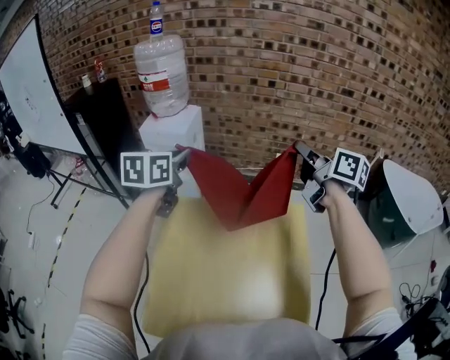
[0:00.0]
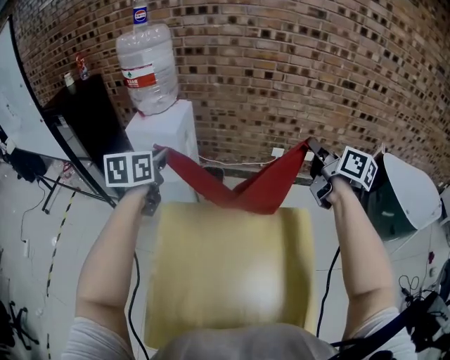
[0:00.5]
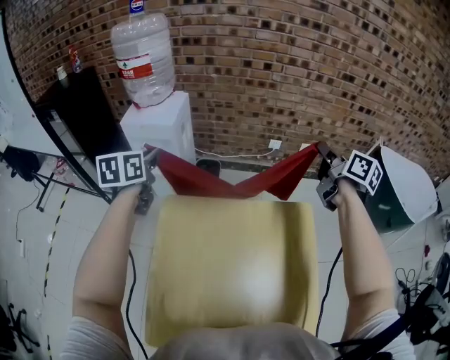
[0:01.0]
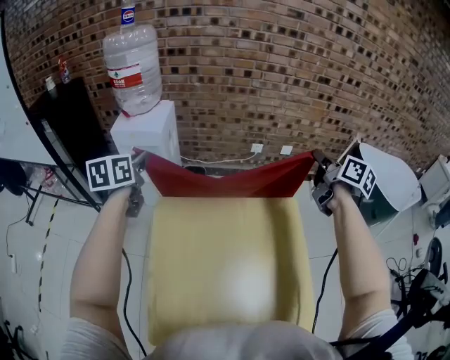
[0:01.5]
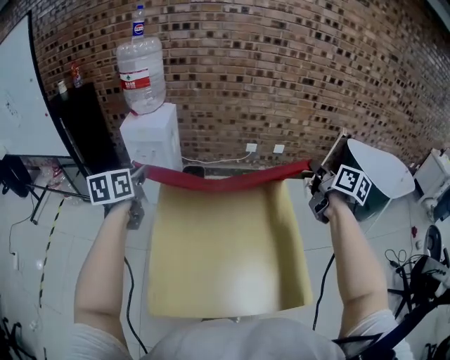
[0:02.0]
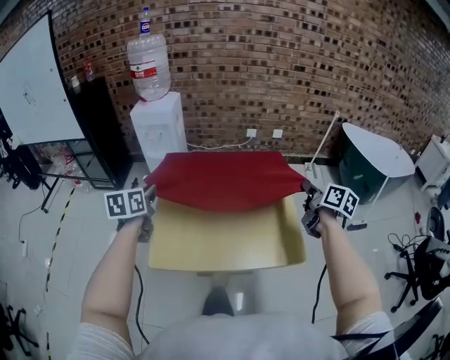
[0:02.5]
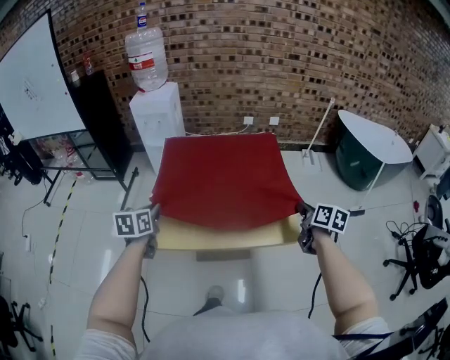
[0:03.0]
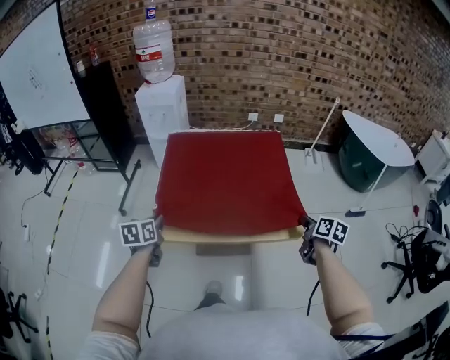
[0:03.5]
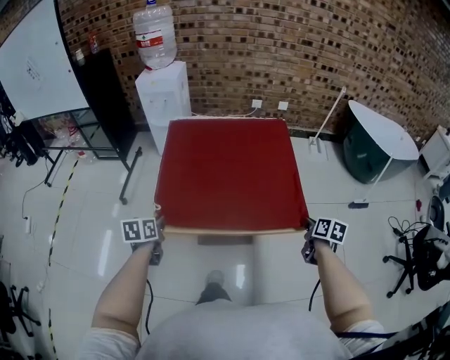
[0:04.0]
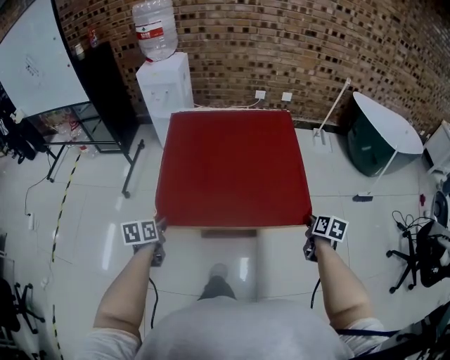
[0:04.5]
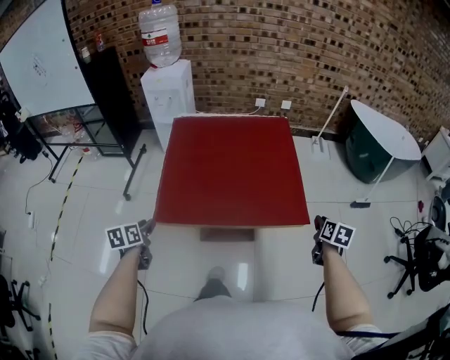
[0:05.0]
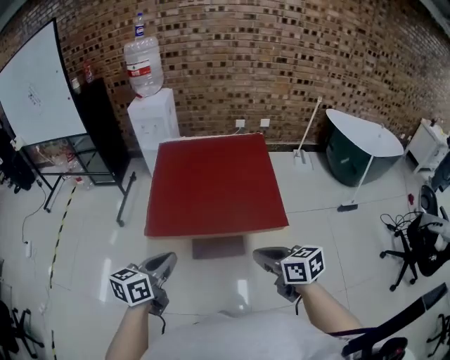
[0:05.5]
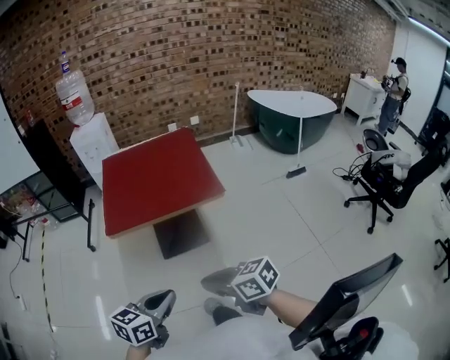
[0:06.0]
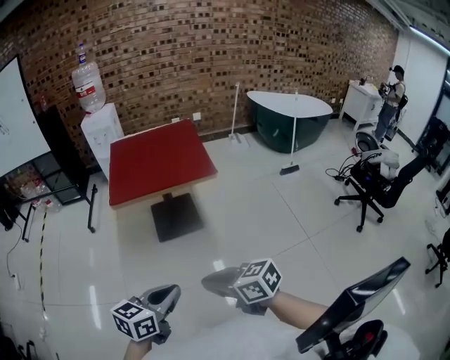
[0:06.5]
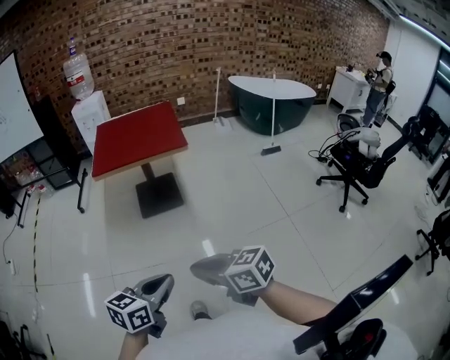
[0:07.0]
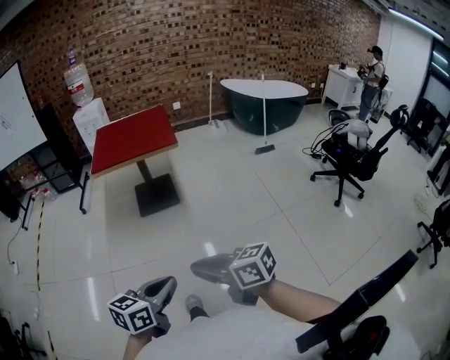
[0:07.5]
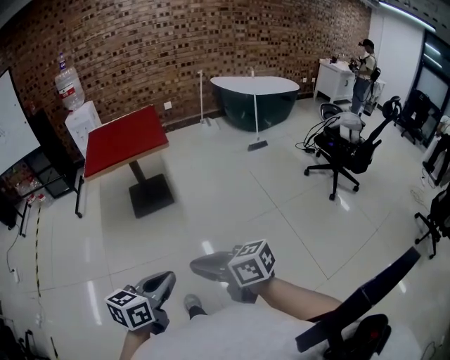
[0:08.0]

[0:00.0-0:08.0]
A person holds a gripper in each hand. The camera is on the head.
0:00.0 to 0:02.0: The right gripper moves backward and to the right, approximately 20 cm, and swivels roughly 30 degrees, while the left gripper heads to the left, backward and downward, covering some 20 cm.
0:02.0 to 0:04.0: Both grippers travel together backward and downward, about 50 cm. The left gripper changes its angle by roughly 20 degrees. The right gripper tilts its fingers about 30 degrees downward.
0:04.0 to 0:06.0: The right gripper shifts approximately 50 cm backward and to the left, rotates approximately 50 degrees, and opens, then closes again; the left gripper shifts some 50 cm backward and to the right, rotates roughly 40 degrees, and opens, then closes once more.
0:06.0 to 0:08.0: The pair of grippers is taken backward, about 40 cm.

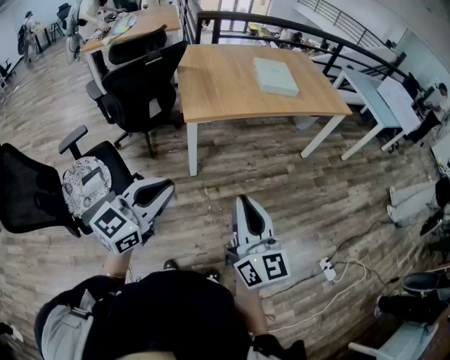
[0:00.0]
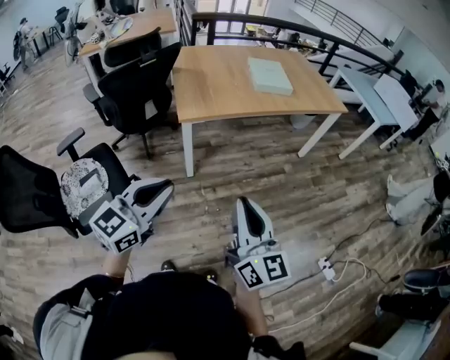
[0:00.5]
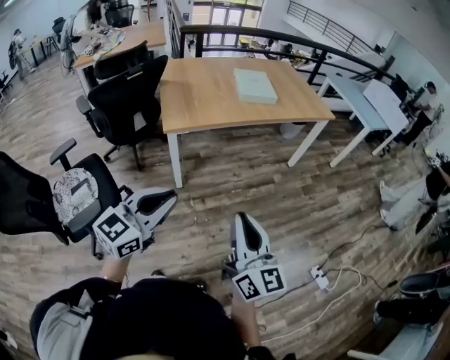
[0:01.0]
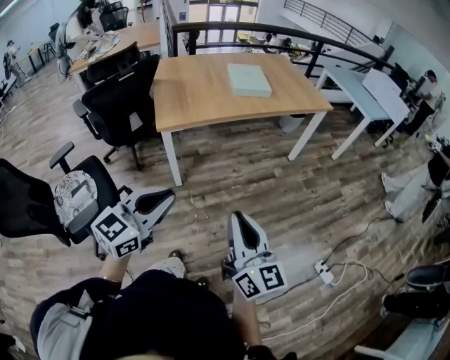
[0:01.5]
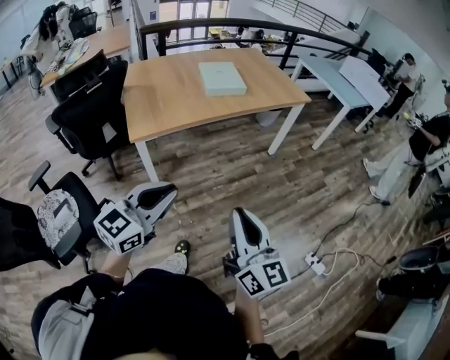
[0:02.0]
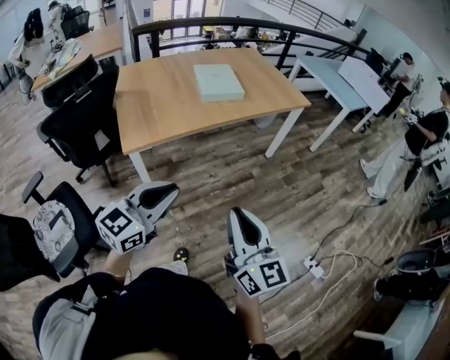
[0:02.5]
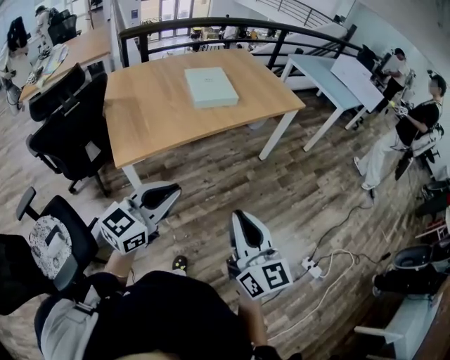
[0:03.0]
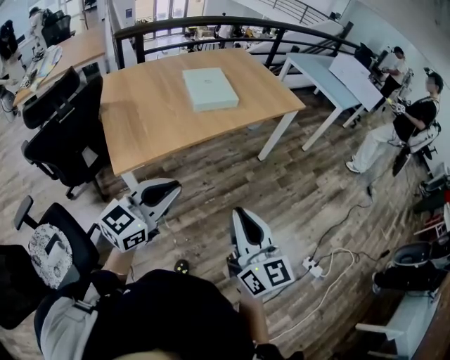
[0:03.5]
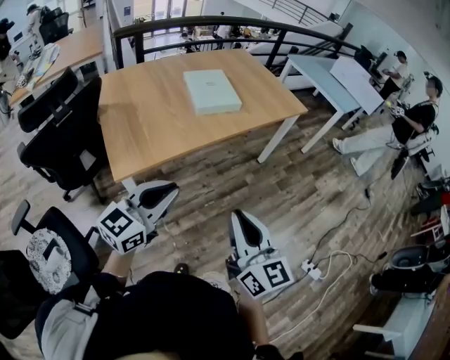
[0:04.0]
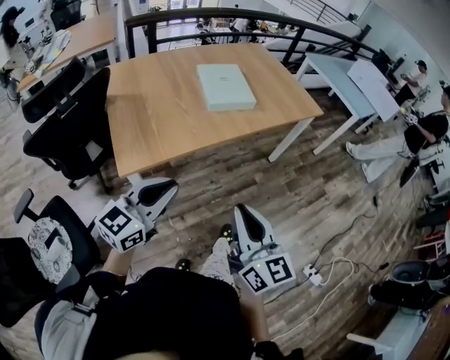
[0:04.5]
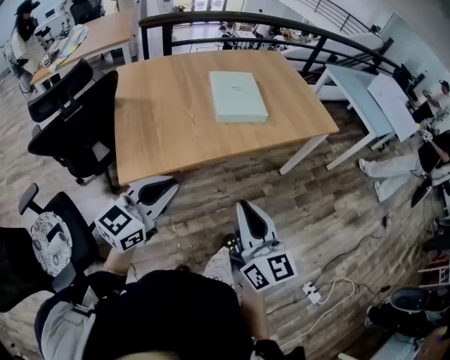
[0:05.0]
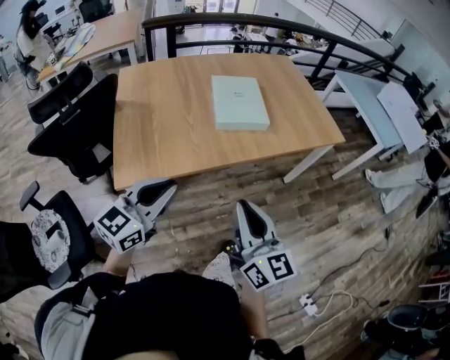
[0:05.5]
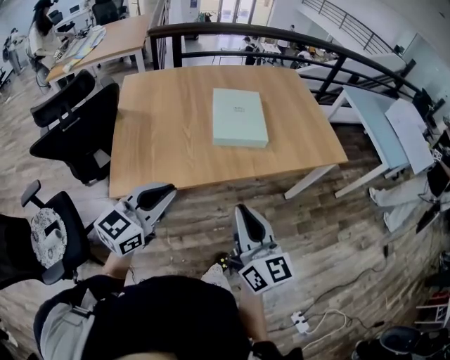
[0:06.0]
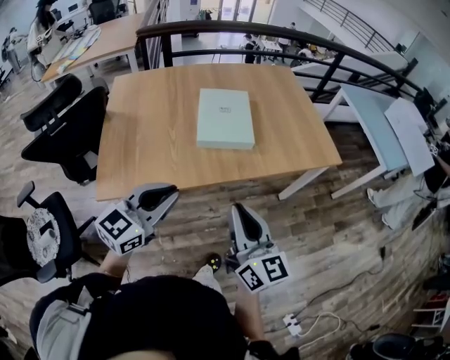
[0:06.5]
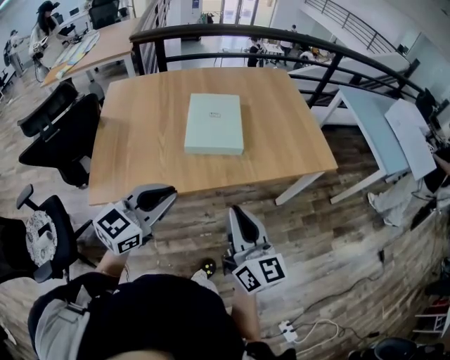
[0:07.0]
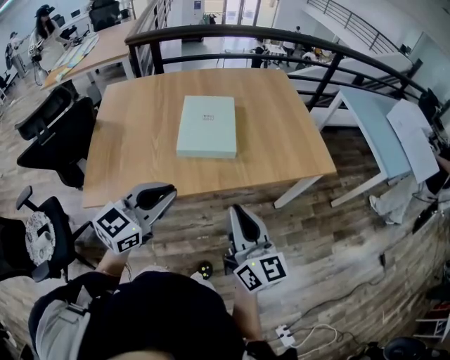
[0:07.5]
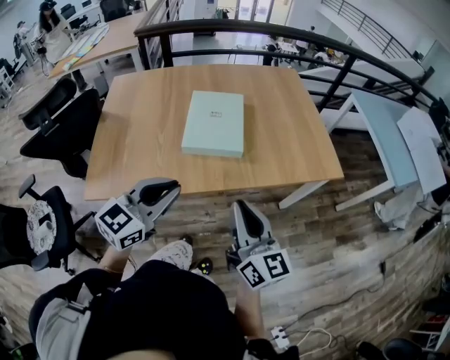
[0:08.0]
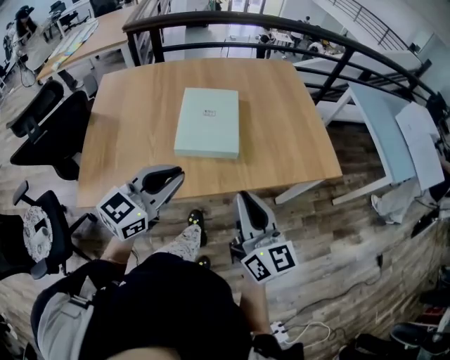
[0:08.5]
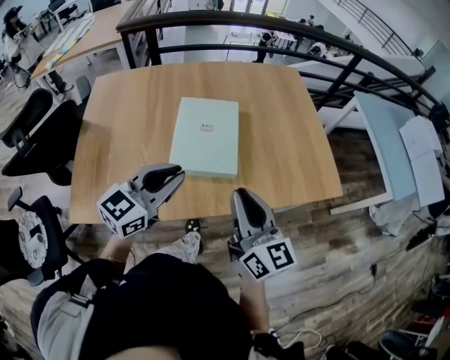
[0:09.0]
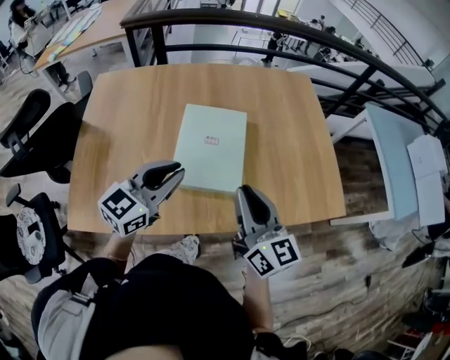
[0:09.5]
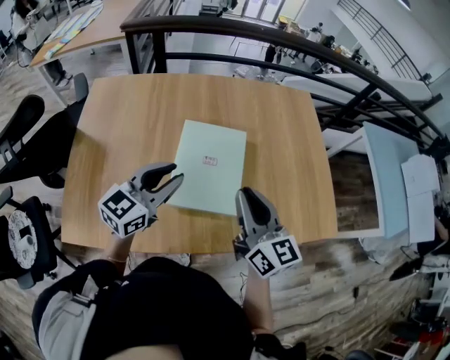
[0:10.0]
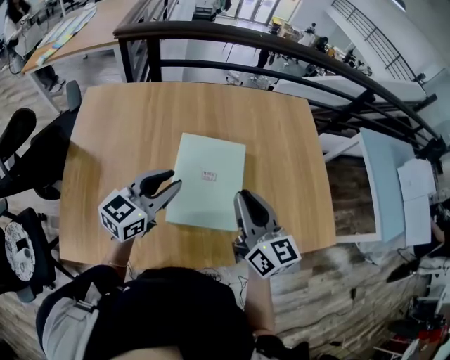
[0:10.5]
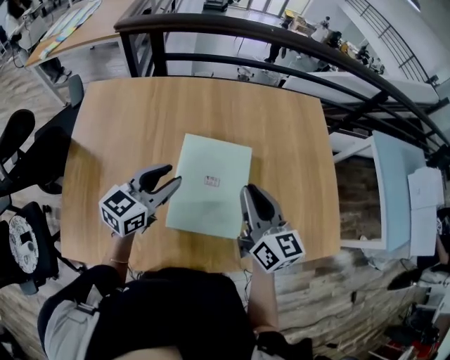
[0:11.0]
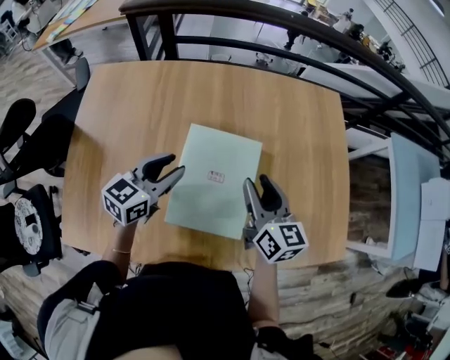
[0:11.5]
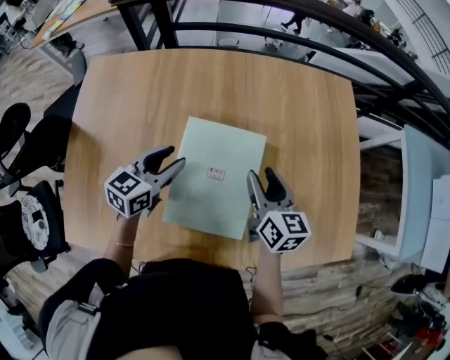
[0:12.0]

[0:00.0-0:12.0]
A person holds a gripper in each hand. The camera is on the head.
0:00.0 to 0:02.0: The right gripper heads to the right, covering about 15 cm, while the left gripper goes roughly 20 cm to the right and forward.
0:02.0 to 0:04.0: The two grippers go some 20 cm forward and to the left.
0:04.0 to 0:06.0: The grippers both shift forward by about 20 cm.
0:06.0 to 0:08.0: Both grippers travel together to the right and forward, some 20 cm.
0:08.0 to 0:10.0: Both grippers move forward, about 30 cm.
0:10.0 to 0:12.0: The two grippers go about 20 cm forward and downward. The right gripper rotates about 20 degrees, and opens its fingers.

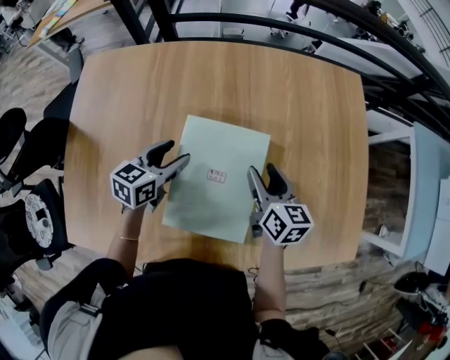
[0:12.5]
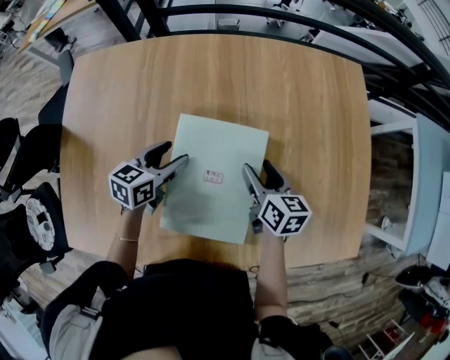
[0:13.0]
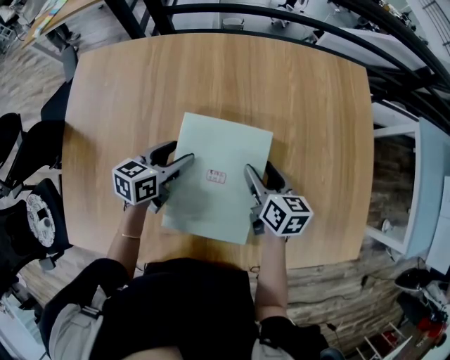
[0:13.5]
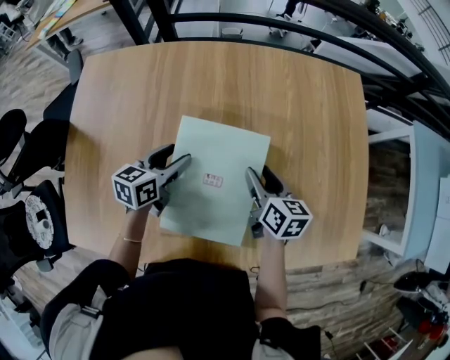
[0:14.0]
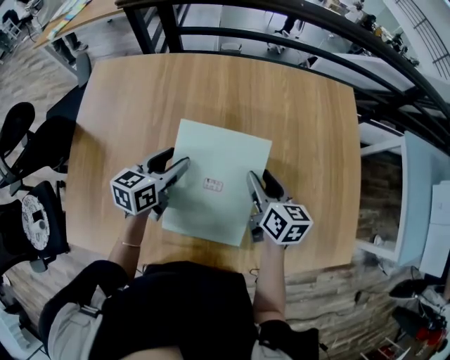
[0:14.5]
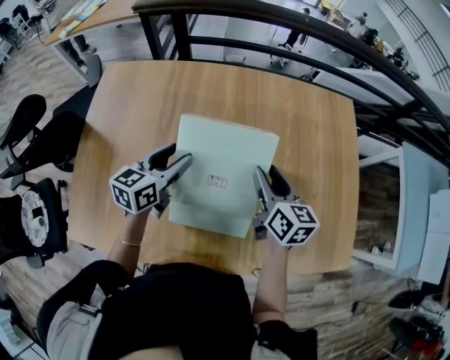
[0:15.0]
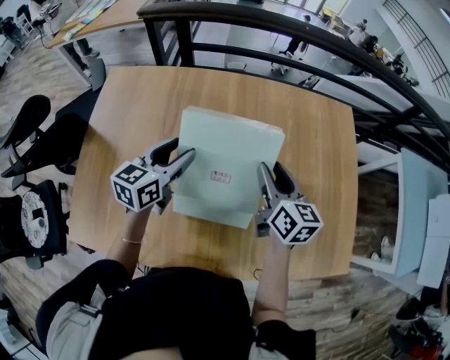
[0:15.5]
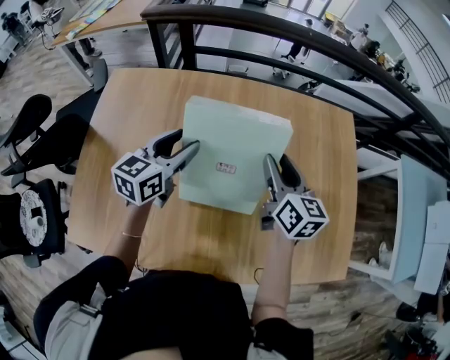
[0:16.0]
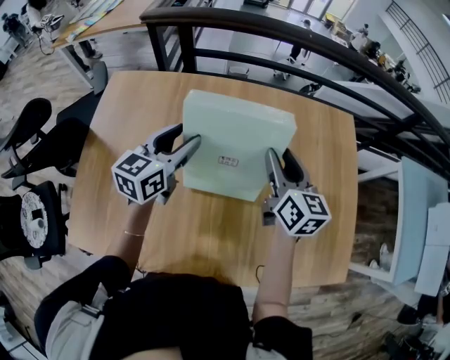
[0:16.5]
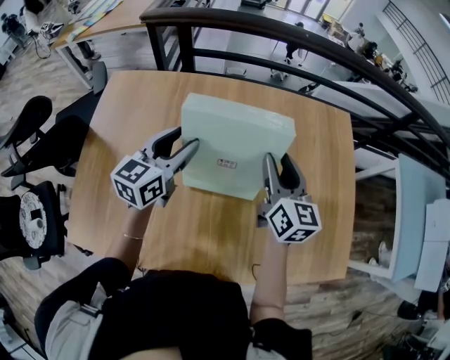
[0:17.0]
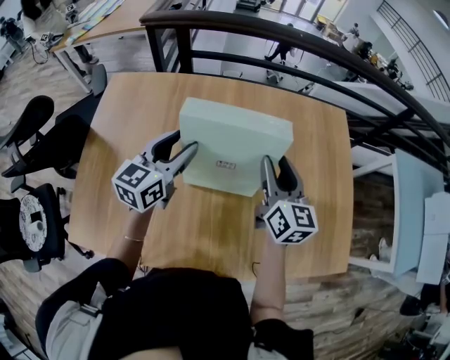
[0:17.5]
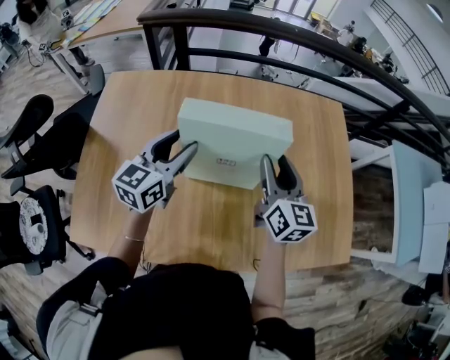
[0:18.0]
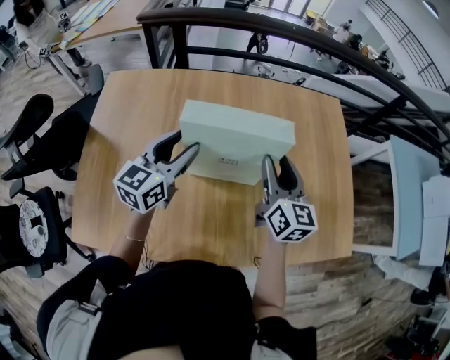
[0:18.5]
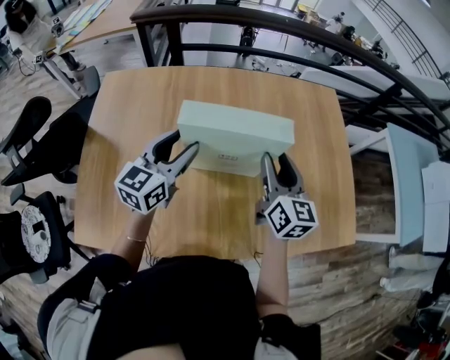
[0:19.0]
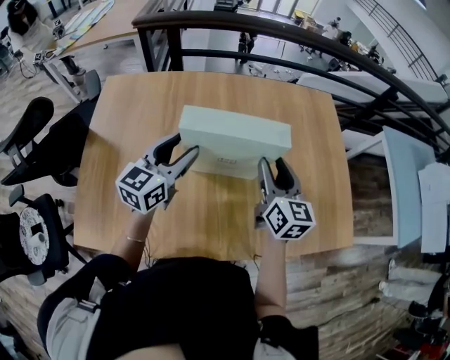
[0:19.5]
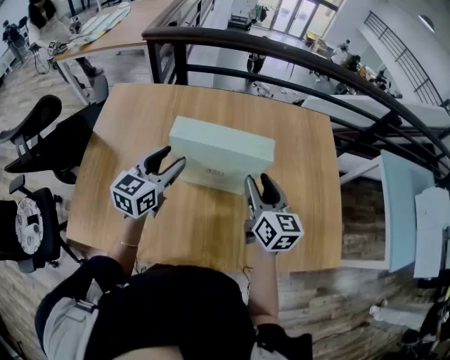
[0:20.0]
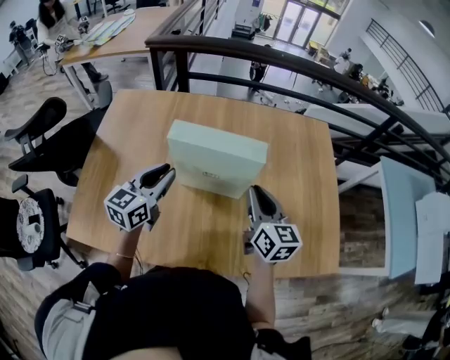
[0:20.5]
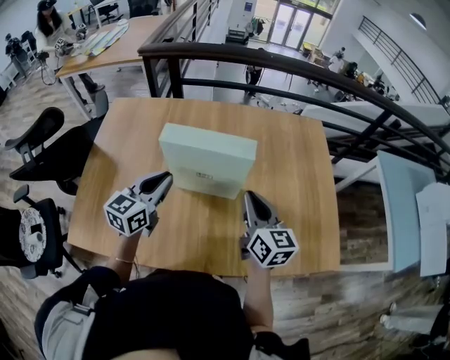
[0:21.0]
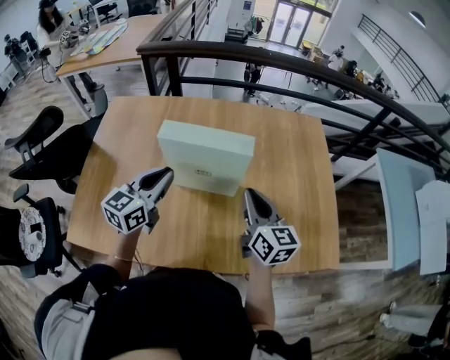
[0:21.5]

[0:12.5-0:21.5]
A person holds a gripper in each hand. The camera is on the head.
0:12.5 to 0:14.5: The grippers make only small movements.
0:14.5 to 0:17.0: The grippers both shift upward by about 15 cm. The left gripper rotates some 20 degrees. Meanwhile the right gripper turns by roughly 20 degrees.
0:17.0 to 0:19.5: Both grippers move backward, about 10 cm.
0:19.5 to 0:21.5: Both grippers travel together backward, some 5 cm. The right gripper closes up; the left gripper closes its fingers.
